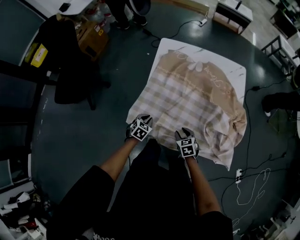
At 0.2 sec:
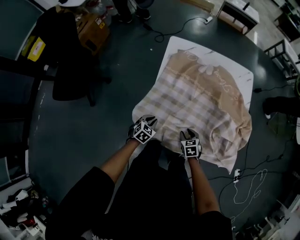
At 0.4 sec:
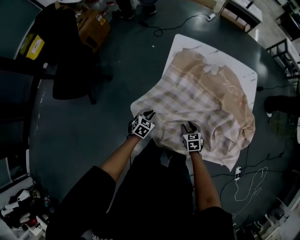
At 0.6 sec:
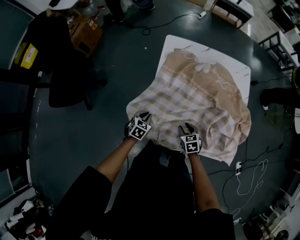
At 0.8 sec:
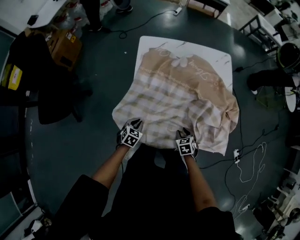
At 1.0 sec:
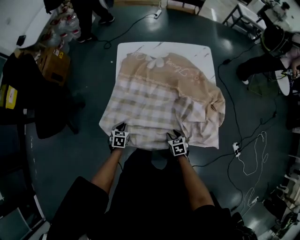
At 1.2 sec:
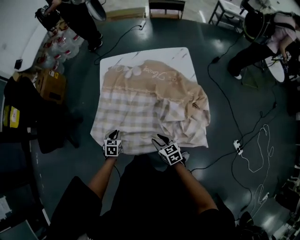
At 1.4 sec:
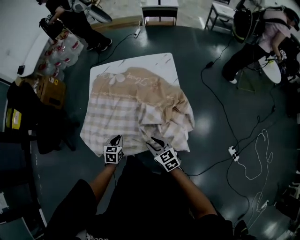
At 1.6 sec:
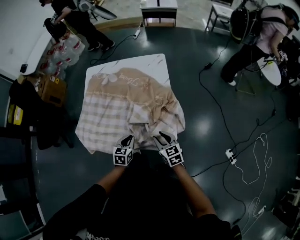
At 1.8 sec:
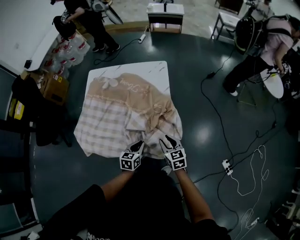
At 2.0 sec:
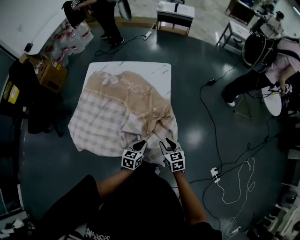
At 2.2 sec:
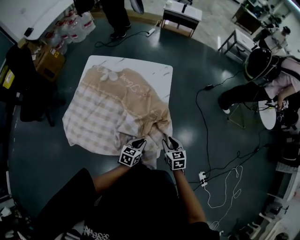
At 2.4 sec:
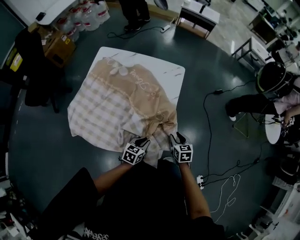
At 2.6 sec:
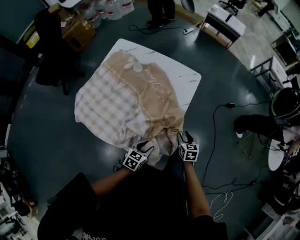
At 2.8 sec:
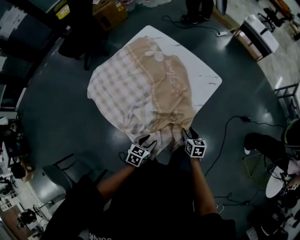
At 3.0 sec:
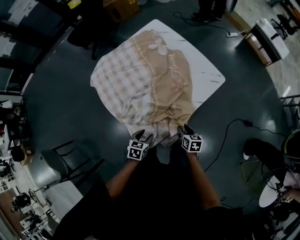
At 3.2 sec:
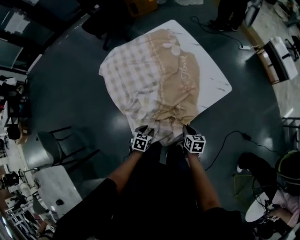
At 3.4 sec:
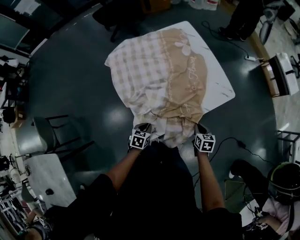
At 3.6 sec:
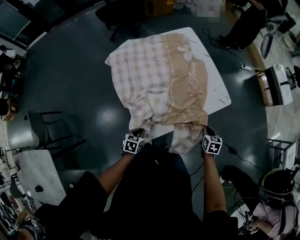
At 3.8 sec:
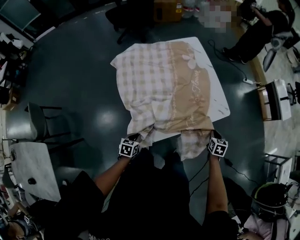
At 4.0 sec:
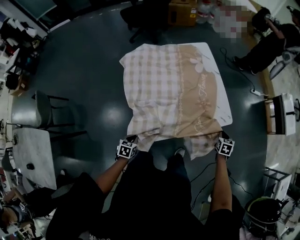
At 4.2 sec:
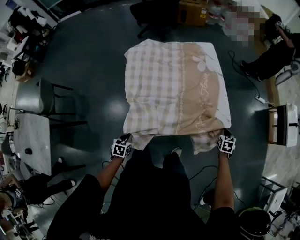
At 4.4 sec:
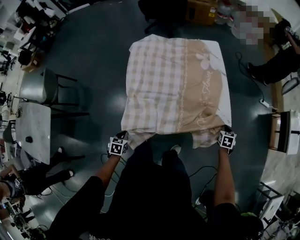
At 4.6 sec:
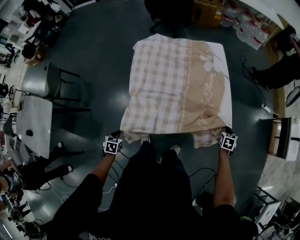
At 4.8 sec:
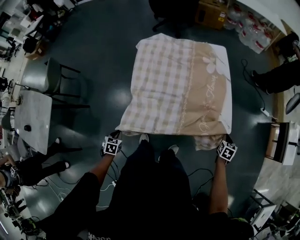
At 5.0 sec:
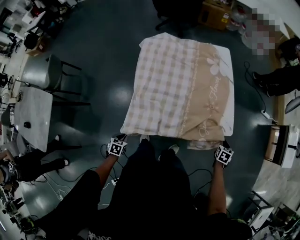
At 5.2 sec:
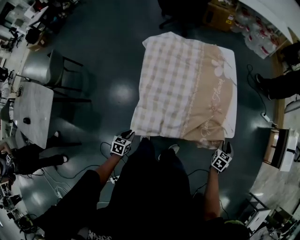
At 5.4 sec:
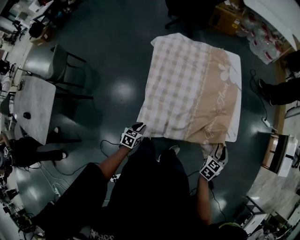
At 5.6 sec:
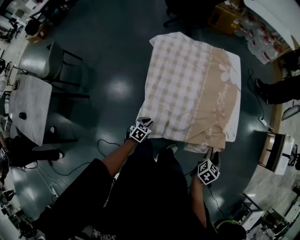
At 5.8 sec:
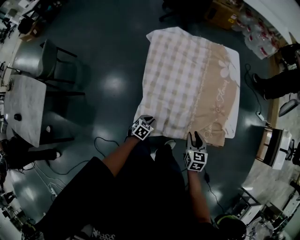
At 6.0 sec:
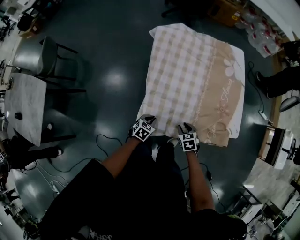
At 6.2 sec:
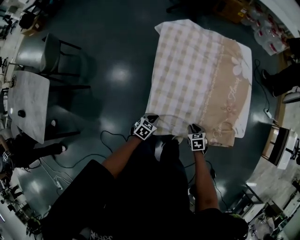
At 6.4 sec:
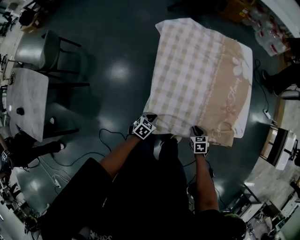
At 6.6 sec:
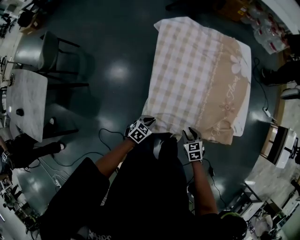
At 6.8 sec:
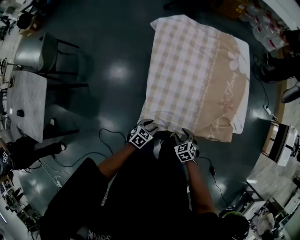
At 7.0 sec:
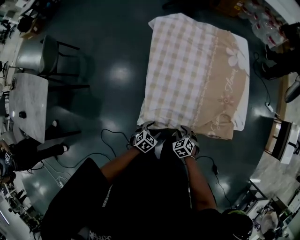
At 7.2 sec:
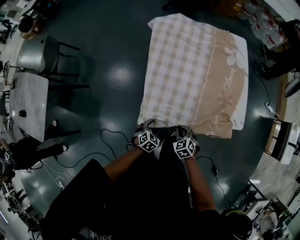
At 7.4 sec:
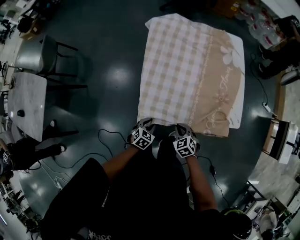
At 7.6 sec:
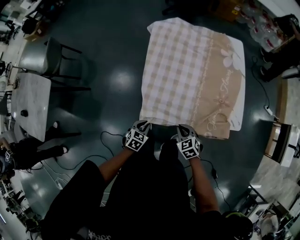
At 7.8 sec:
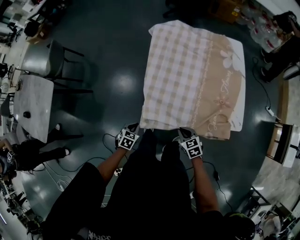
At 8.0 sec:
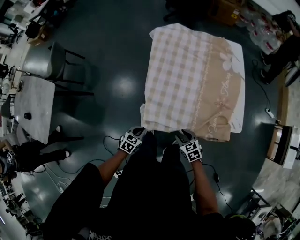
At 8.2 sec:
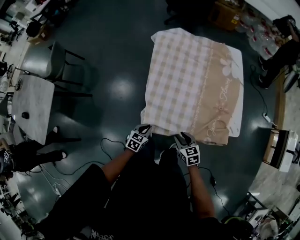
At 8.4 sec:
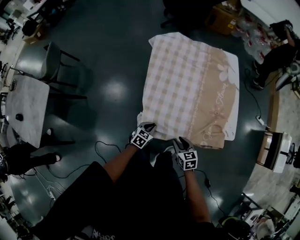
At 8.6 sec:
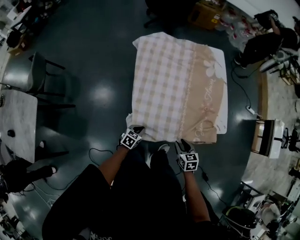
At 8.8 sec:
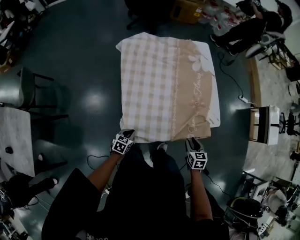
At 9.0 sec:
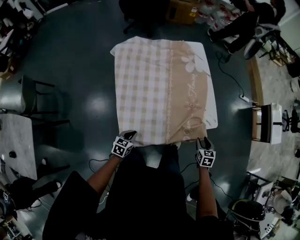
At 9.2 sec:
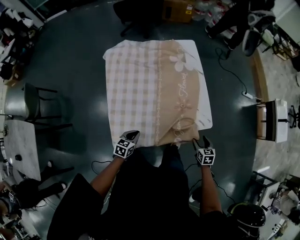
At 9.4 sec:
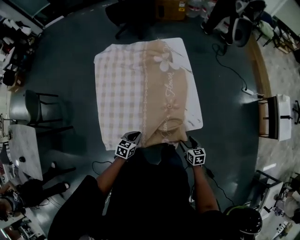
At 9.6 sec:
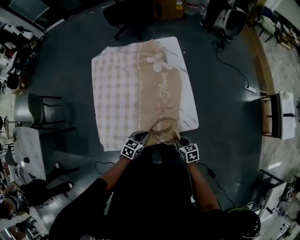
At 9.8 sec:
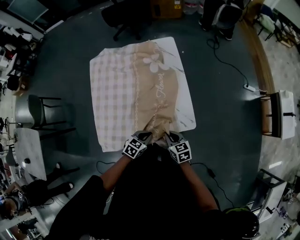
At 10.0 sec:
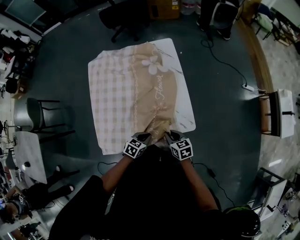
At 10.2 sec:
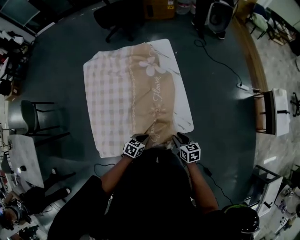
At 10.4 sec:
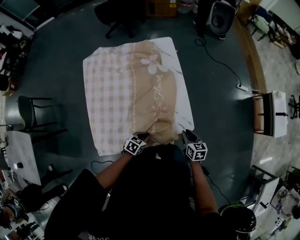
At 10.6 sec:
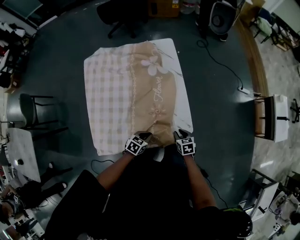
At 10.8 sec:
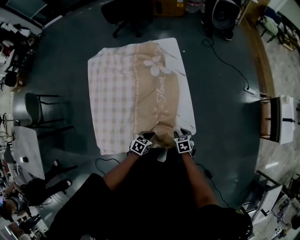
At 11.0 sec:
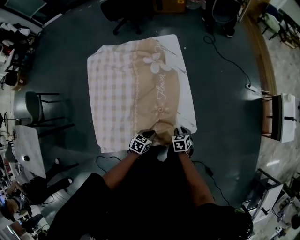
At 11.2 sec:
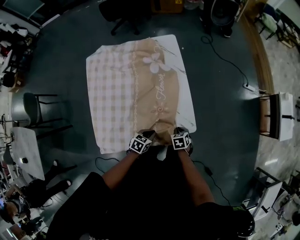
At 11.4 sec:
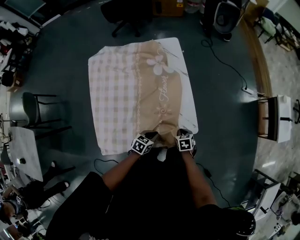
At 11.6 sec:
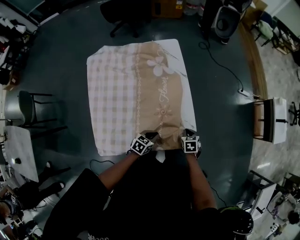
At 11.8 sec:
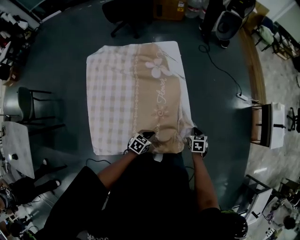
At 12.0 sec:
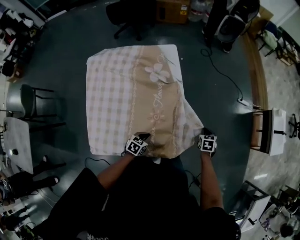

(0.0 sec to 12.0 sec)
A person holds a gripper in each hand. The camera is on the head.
0.0 sec - 1.6 sec: The left gripper heads to the right, covering approximately 35 cm; the right gripper shifts roughly 35 cm to the right and upward, and rotates approximately 30 degrees.
1.6 sec - 3.0 sec: The right gripper ends up approximately 30 cm from where it was, and swivels approximately 40 degrees. The left gripper moves roughly 20 cm, changes its angle by roughly 50 degrees, and opens its fingers.
3.0 sec - 4.4 sec: The left gripper moves backward, approximately 15 cm, swivels approximately 40 degrees, and closes its fingers. Meanwhile the right gripper heads forward and to the right, covering approximately 35 cm, rotates around the line of its fingers by about 40 degrees, counterclockwise from behind, and closes its fingers.
4.4 sec - 6.0 sec: The left gripper shifts by roughly 15 cm; the right gripper reaches approximately 10 cm upward, then returns, swivels some 40 degrees, and opens its fingers.
6.0 sec - 7.6 sec: The left gripper shifts about 5 cm backward, and opens, then closes once more. The right gripper travels upward by approximately 5 cm, rotates roughly 20 degrees, and closes up.
7.6 sec - 9.0 sec: The right gripper ends up about 30 cm from where it was, rotates some 50 degrees, and opens up. The left gripper changes place by roughly 10 cm.
9.0 sec - 10.4 sec: The left gripper heads to the right, covering approximately 25 cm. The right gripper moves left and right over about 10 cm, changing direction 2 times, and rotates roughly 20 degrees.
10.4 sec - 12.0 sec: The right gripper moves forward and to the right, some 20 cm, and turns by roughly 30 degrees; the left gripper moves about 5 cm.

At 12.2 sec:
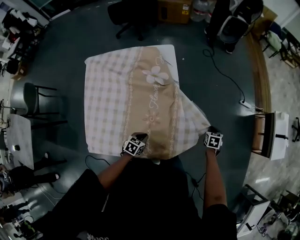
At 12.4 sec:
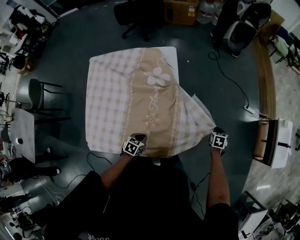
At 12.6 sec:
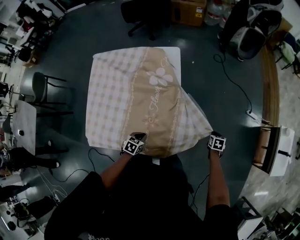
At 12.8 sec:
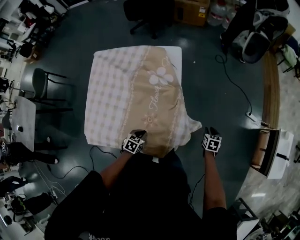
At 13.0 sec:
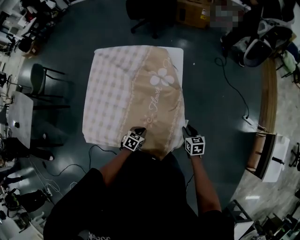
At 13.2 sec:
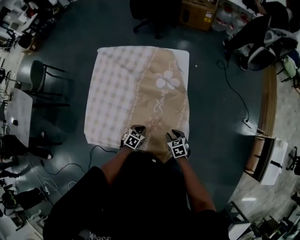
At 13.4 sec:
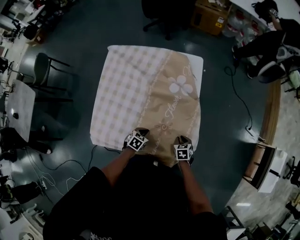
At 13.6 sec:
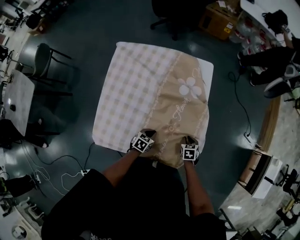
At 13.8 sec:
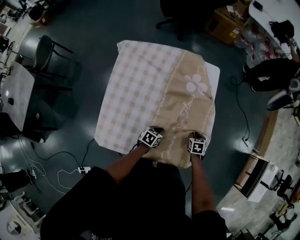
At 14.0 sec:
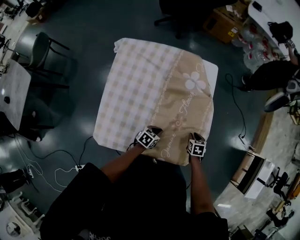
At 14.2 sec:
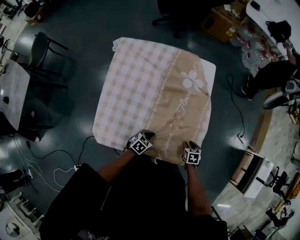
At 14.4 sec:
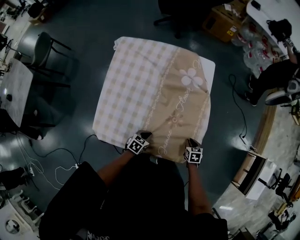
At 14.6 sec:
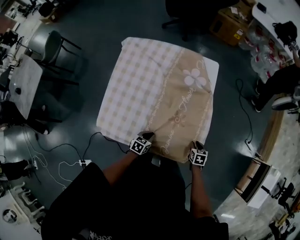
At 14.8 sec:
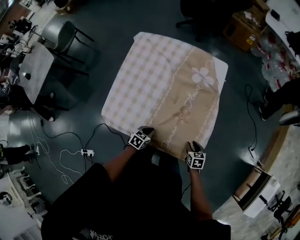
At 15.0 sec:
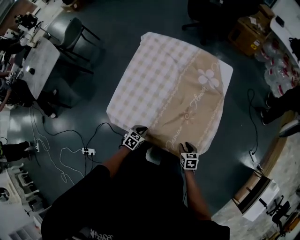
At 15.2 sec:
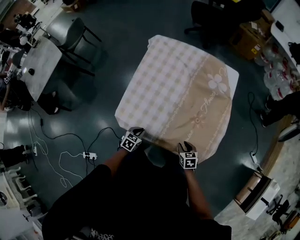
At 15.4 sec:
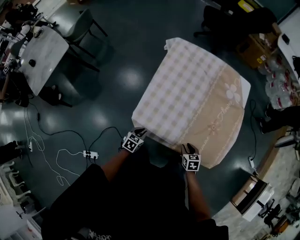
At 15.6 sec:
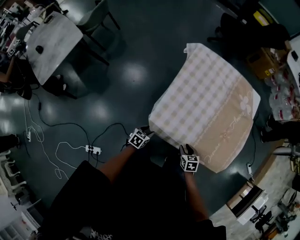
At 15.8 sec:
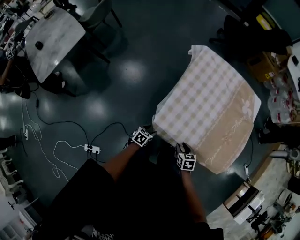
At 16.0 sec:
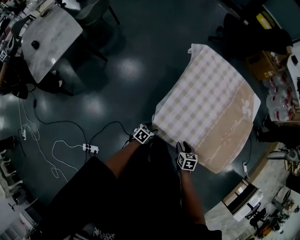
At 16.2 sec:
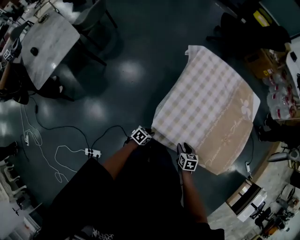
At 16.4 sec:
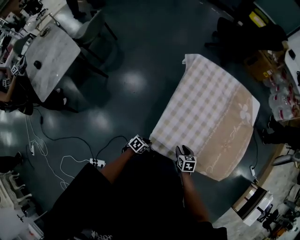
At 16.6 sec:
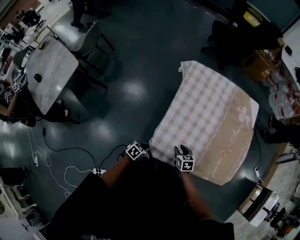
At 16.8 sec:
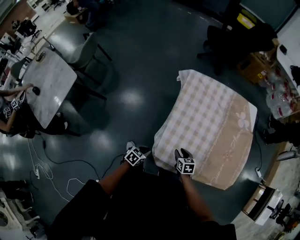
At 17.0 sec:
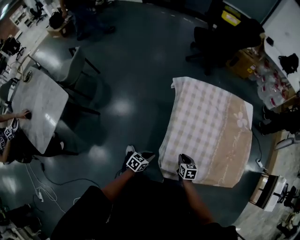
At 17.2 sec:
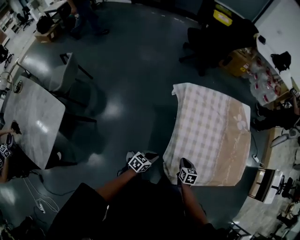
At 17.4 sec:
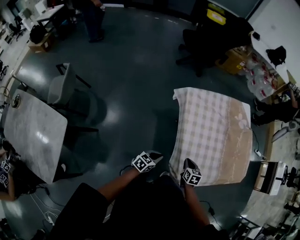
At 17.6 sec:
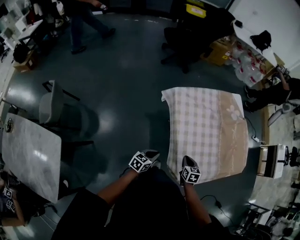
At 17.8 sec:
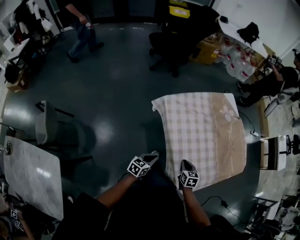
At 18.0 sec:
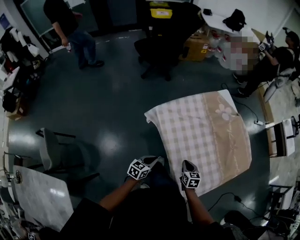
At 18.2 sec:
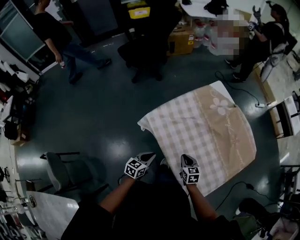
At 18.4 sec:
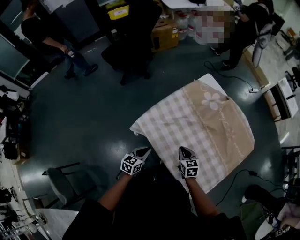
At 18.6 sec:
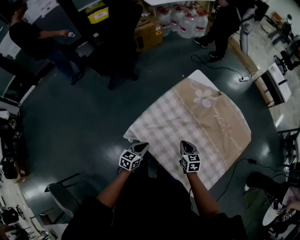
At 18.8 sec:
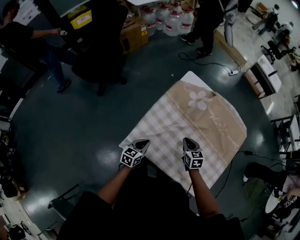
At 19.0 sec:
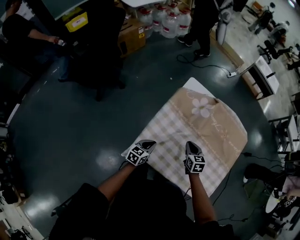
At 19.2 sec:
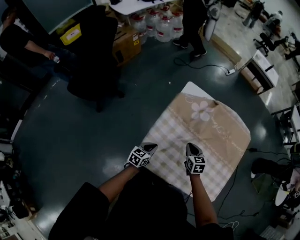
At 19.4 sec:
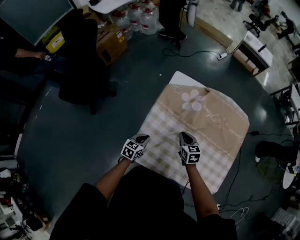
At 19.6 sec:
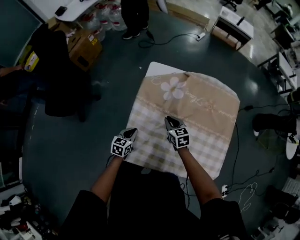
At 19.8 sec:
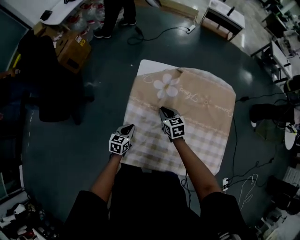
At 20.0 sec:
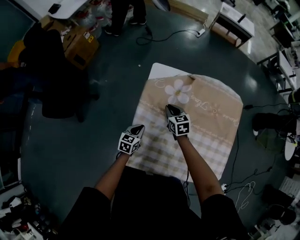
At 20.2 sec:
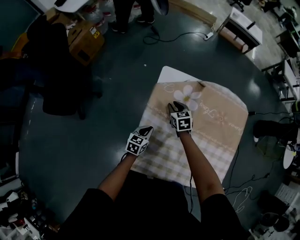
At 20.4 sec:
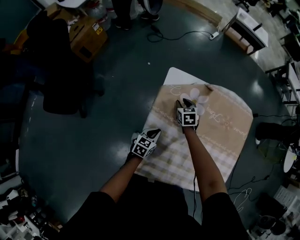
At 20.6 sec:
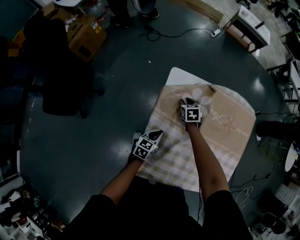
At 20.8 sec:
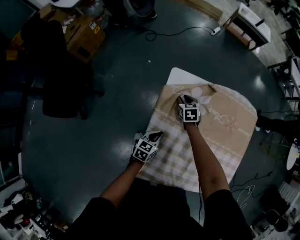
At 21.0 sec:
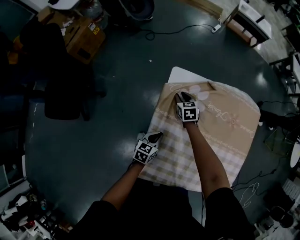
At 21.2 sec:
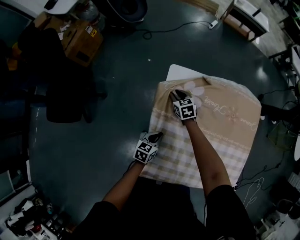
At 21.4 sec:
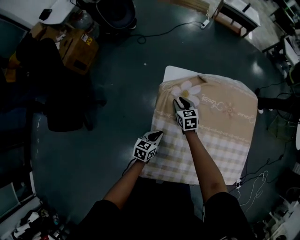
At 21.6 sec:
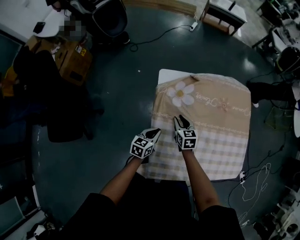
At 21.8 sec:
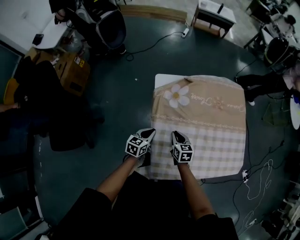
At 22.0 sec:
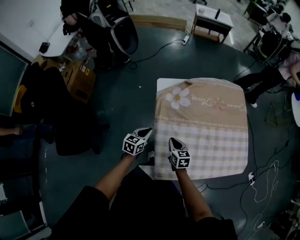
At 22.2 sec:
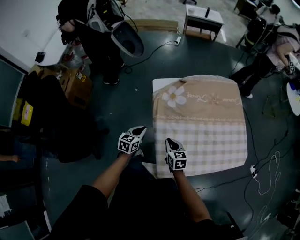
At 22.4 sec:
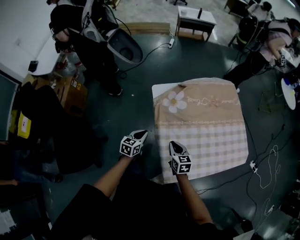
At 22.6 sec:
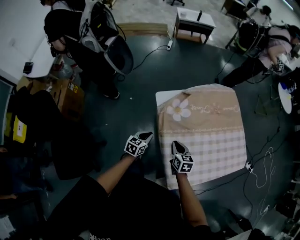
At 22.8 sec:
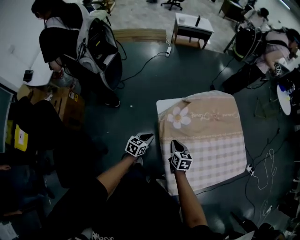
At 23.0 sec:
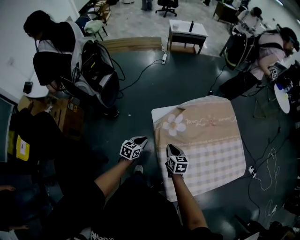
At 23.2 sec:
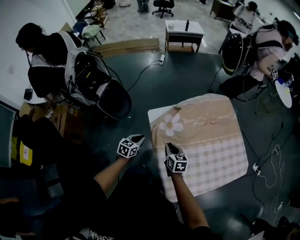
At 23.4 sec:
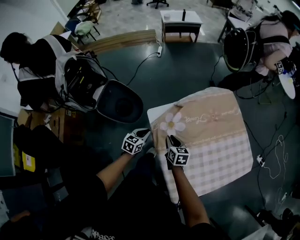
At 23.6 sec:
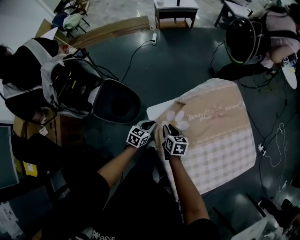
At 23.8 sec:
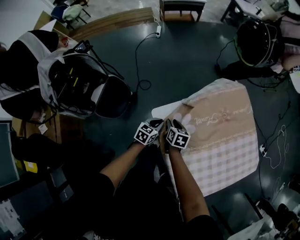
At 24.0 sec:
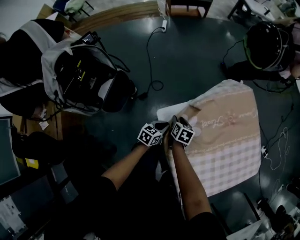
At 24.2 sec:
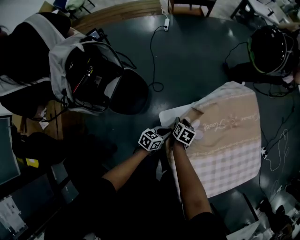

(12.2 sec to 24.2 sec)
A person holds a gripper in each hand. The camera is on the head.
12.2 sec - 13.8 sec: The right gripper goes up and down, roughly 10 cm each way, reversing 2 times, and rotates some 20 degrees; the left gripper ends up roughly 10 cm from where it was.
13.8 sec - 15.2 sec: The right gripper changes place by some 20 cm, and changes its angle by about 30 degrees, while the left gripper moves some 25 cm, and turns by approximately 20 degrees.
15.2 sec - 16.6 sec: The two grippers go roughly 25 cm to the left. The left gripper opens and closes again.
16.6 sec - 18.2 sec: The right gripper changes place by some 25 cm, turns by about 50 degrees, and closes up. The left gripper changes place by some 40 cm, and rotates roughly 40 degrees.
18.2 sec - 19.8 sec: The left gripper shifts by approximately 40 cm, and changes its angle by some 40 degrees, while the right gripper ends up about 35 cm from where it was, and swivels some 40 degrees.
19.8 sec - 21.2 sec: The right gripper shifts some 20 cm forward, downward and to the left. The left gripper shifts by approximately 5 cm.
21.2 sec - 22.6 sec: The right gripper shifts by roughly 25 cm, turns by roughly 50 degrees, and closes up; the left gripper ends up some 15 cm from where it was, and rotates approximately 30 degrees.
22.6 sec - 24.2 sec: The left gripper moves forward, approximately 20 cm, and changes its angle by some 20 degrees, while the right gripper travels forward and downward by approximately 30 cm, turns by some 30 degrees, and opens.
